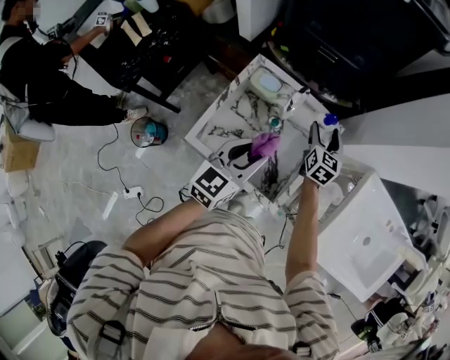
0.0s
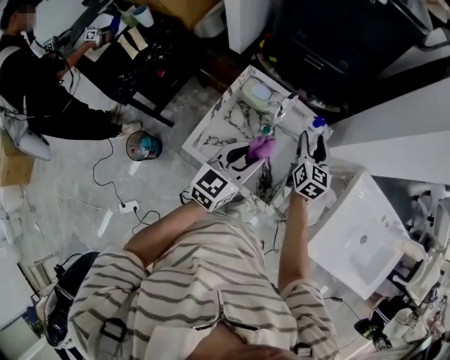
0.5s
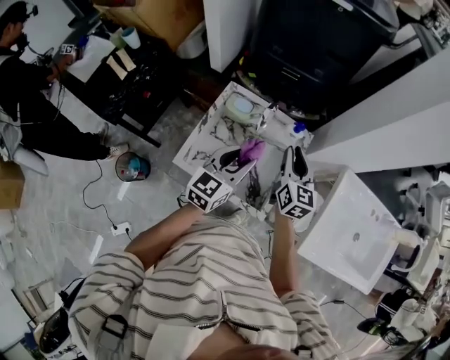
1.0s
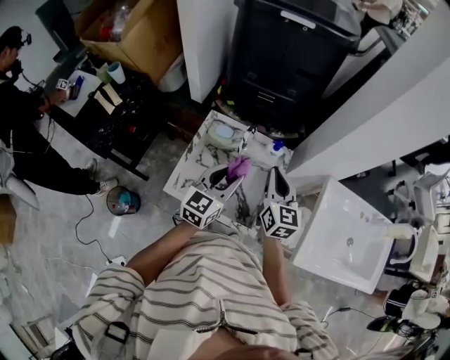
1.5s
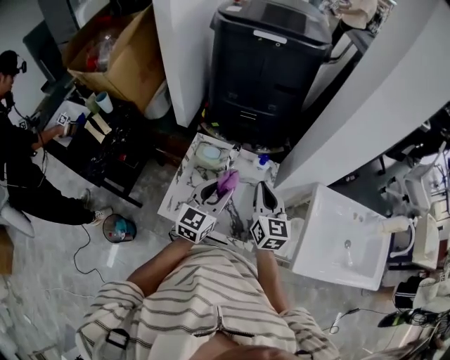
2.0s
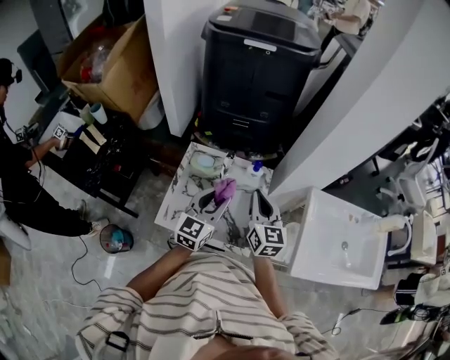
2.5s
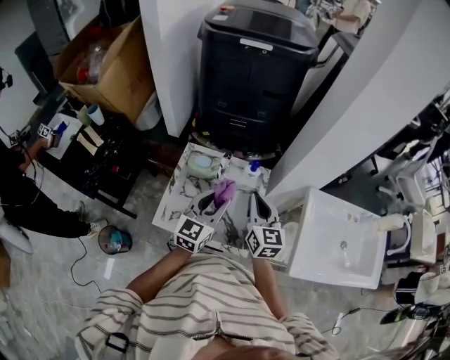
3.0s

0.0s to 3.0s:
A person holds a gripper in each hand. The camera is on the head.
0.0s to 1.5s: The right gripper moves upward and backward, about 25 cm, and closes. The left gripper goes about 5 cm upward.
1.5s to 3.0s: The grippers stay close to where they were, moving slightly.

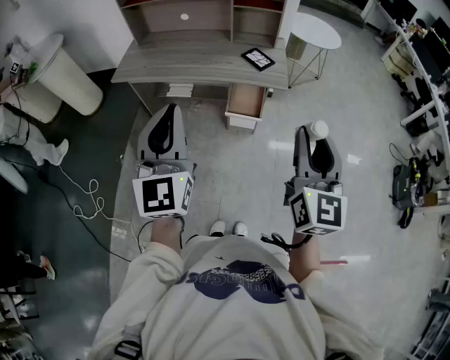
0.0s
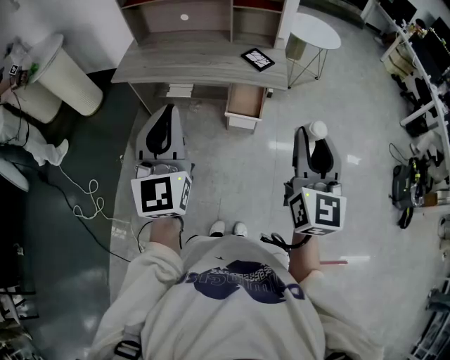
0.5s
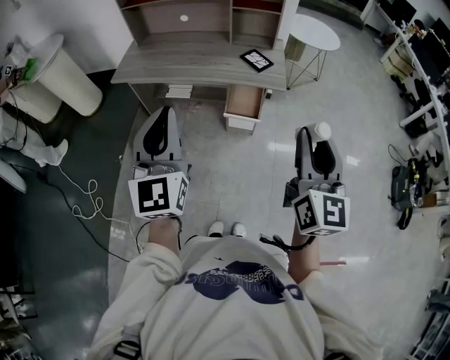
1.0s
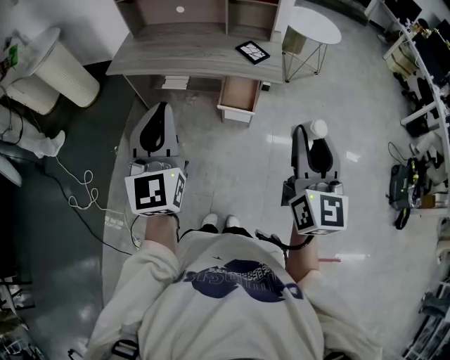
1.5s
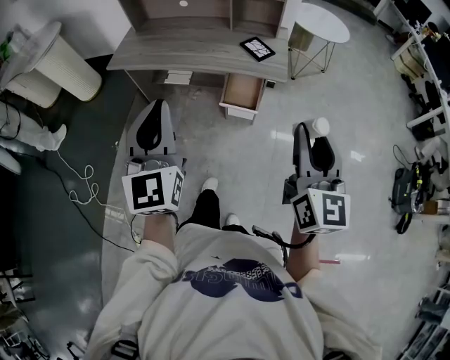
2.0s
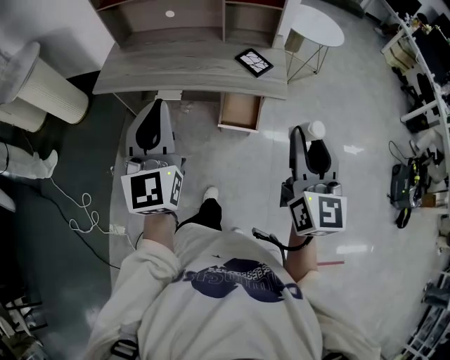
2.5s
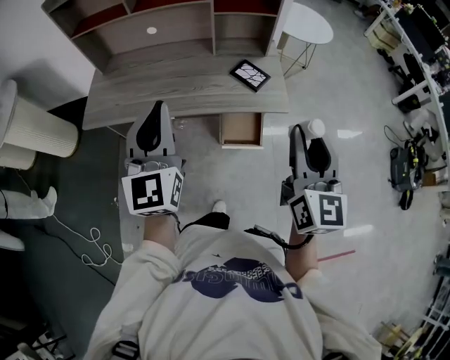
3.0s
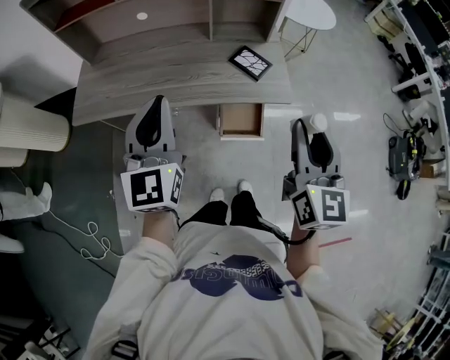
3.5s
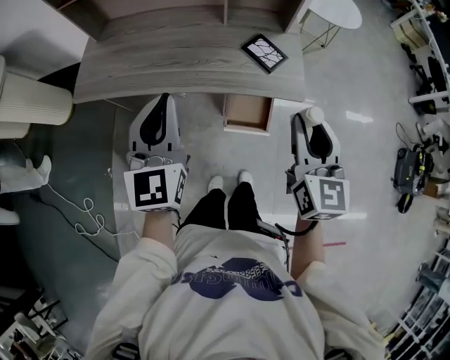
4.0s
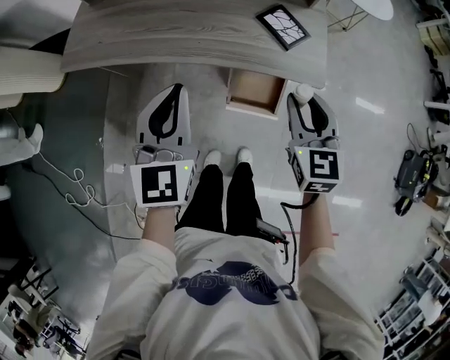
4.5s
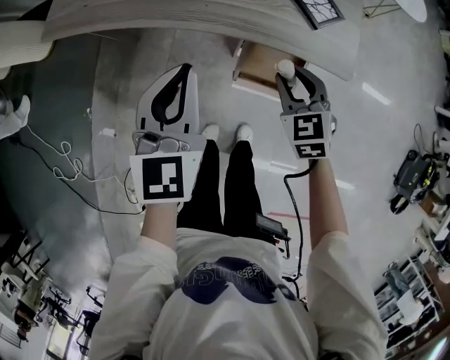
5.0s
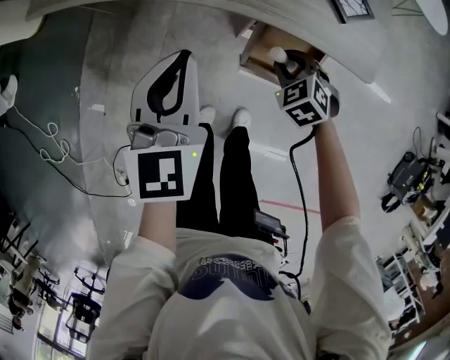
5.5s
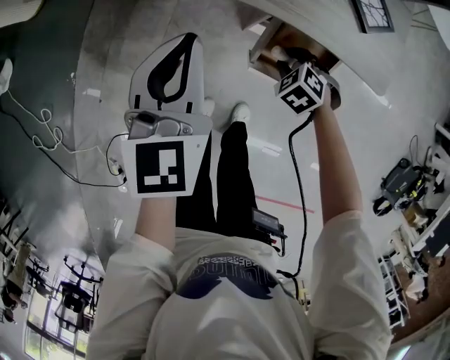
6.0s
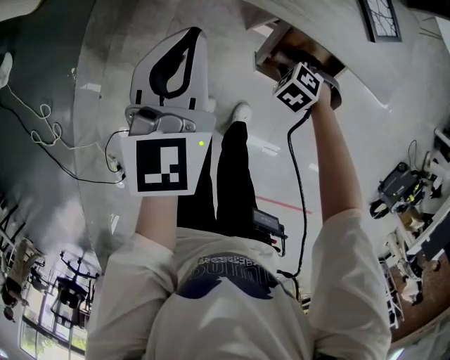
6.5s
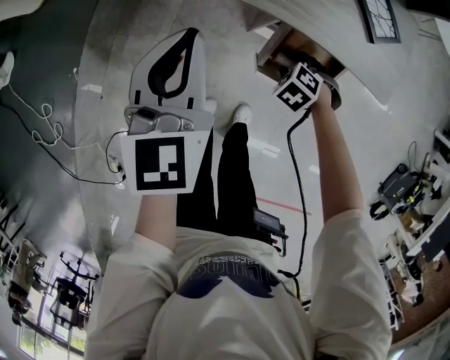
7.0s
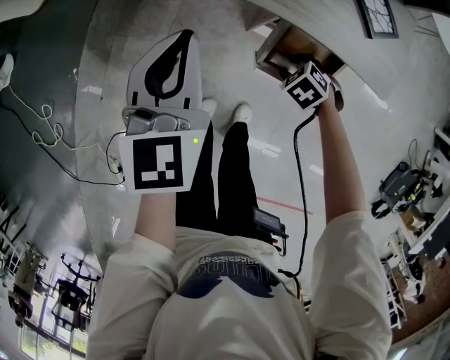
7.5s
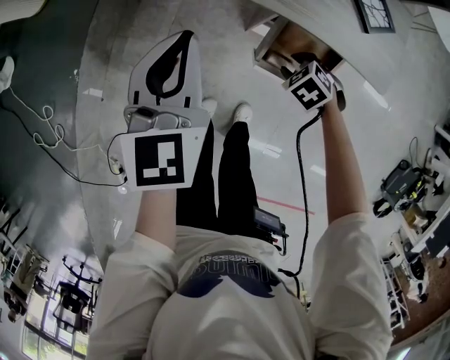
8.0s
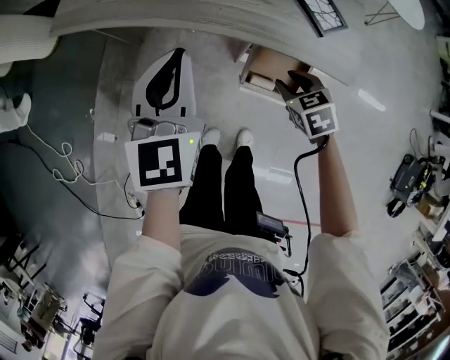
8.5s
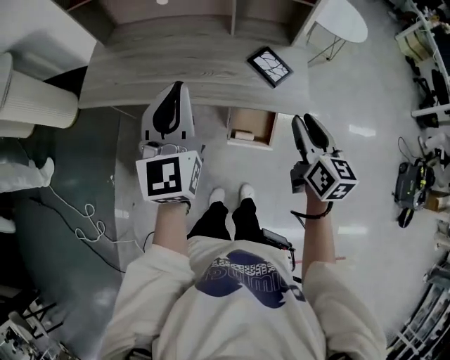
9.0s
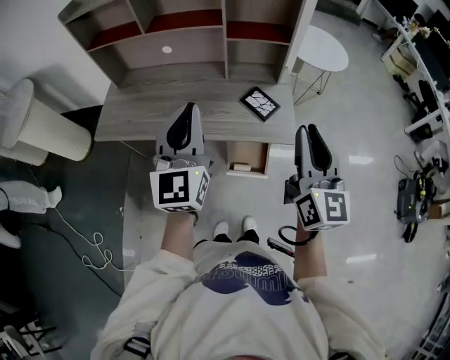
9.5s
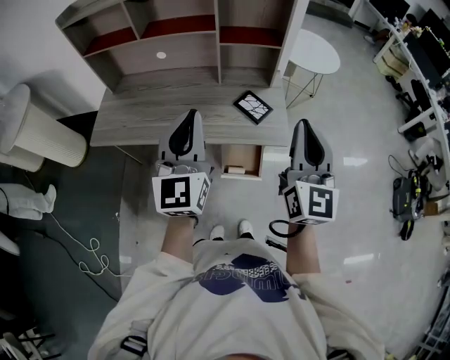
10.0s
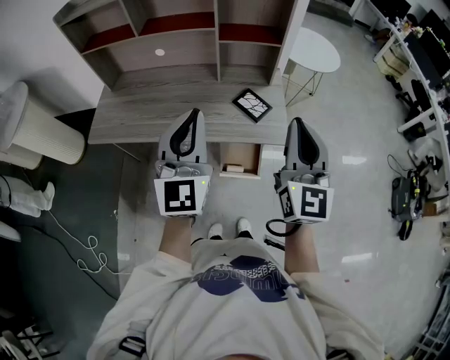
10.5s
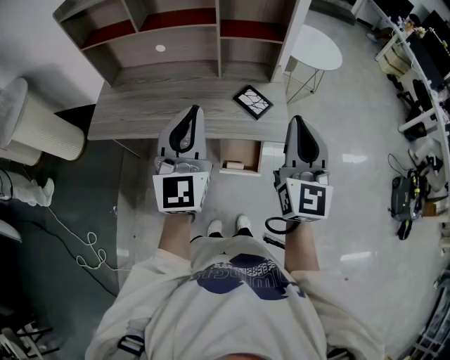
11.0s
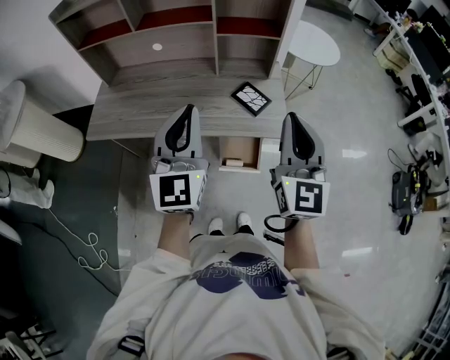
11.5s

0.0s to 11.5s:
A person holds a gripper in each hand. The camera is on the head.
0.0s to 2.0s: The right gripper shifts by some 5 cm.
2.0s to 4.0s: Both grippers travel together forward, approximately 30 cm.
4.0s to 6.0s: The left gripper heads downward, covering some 25 cm. The right gripper moves downward, roughly 50 cm, and tilts its fingers about 60 degrees downward.
6.0s to 7.5s: The grippers move only a little.
7.5s to 9.5s: The left gripper is displaced upward by some 35 cm, and swivels approximately 30 degrees, while the right gripper heads upward, covering approximately 60 cm, and angles its fingers upward, by some 90 degrees.
9.5s to 11.5s: There are only small adjustments of the grippers.

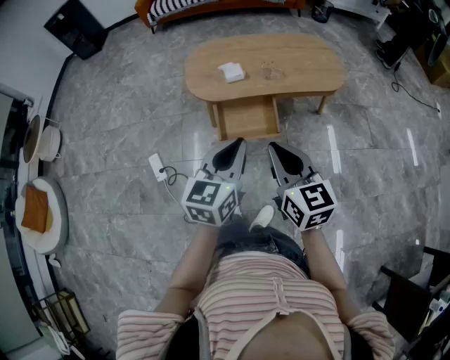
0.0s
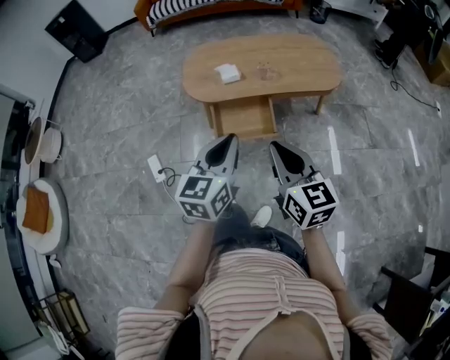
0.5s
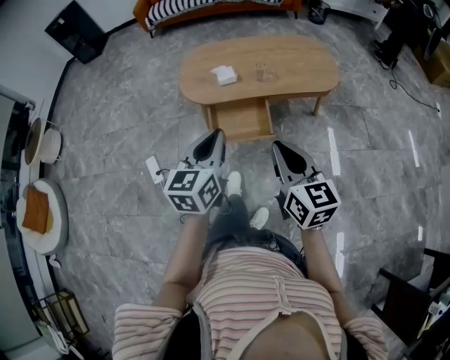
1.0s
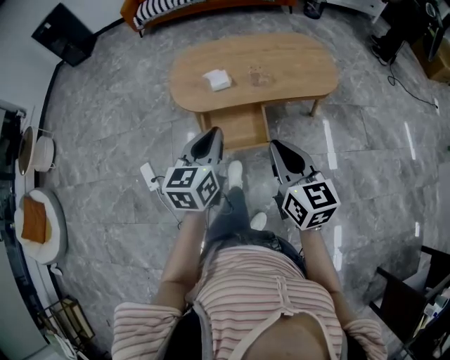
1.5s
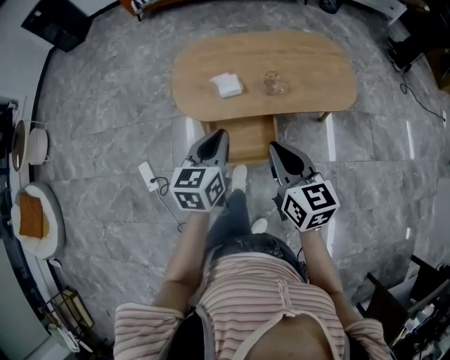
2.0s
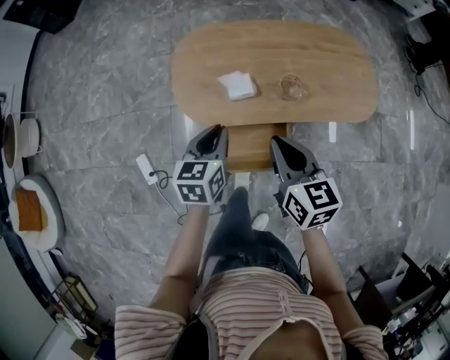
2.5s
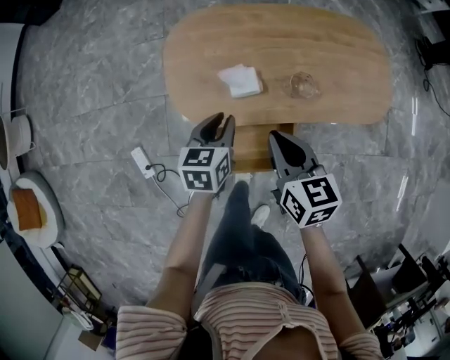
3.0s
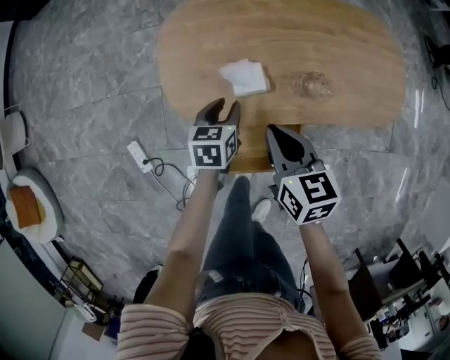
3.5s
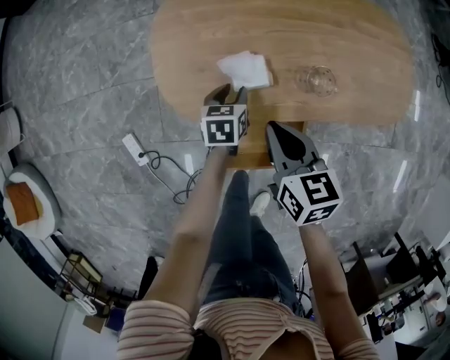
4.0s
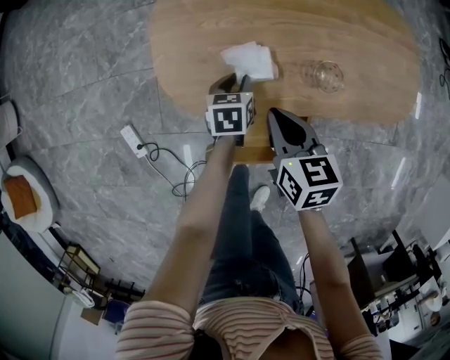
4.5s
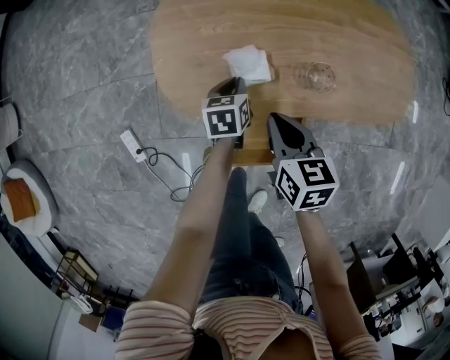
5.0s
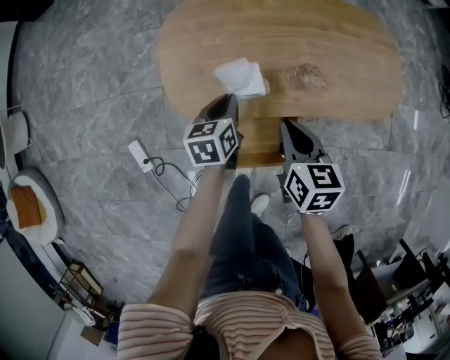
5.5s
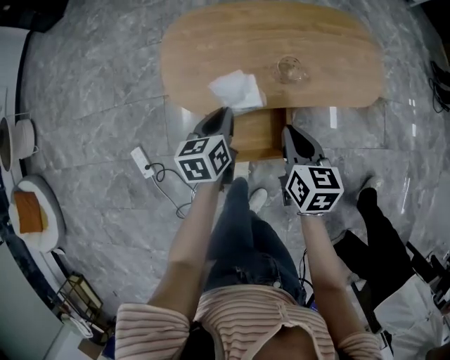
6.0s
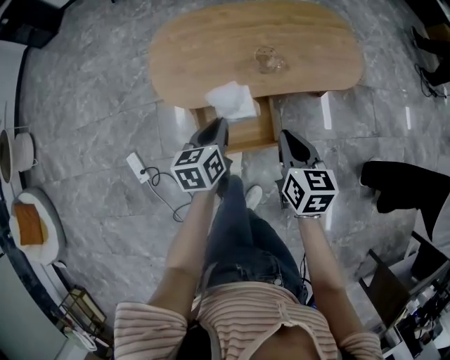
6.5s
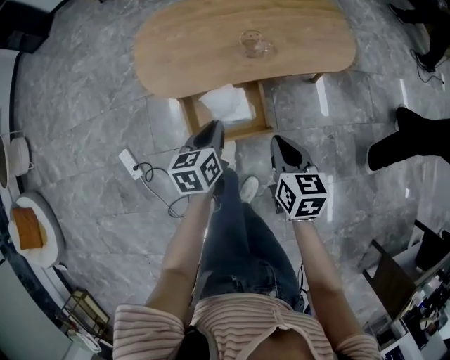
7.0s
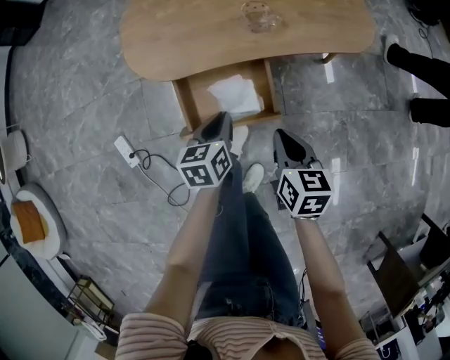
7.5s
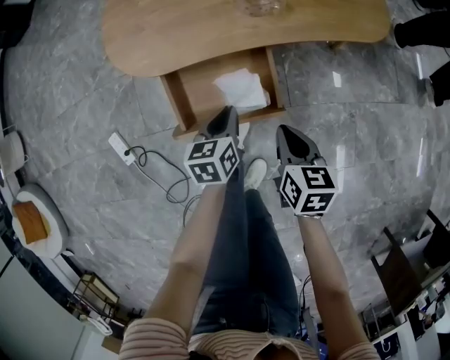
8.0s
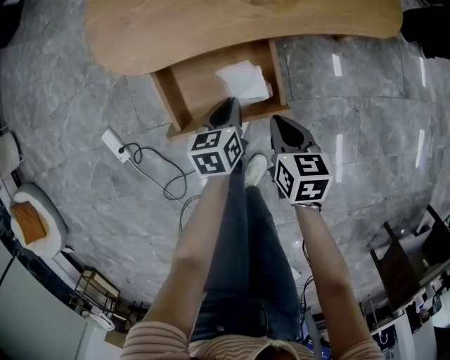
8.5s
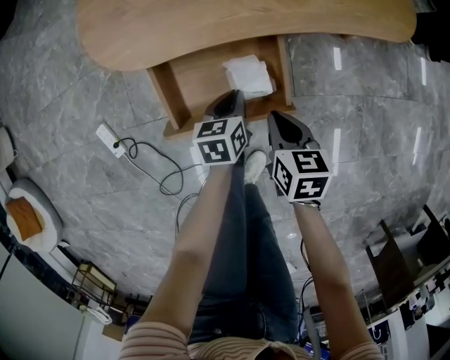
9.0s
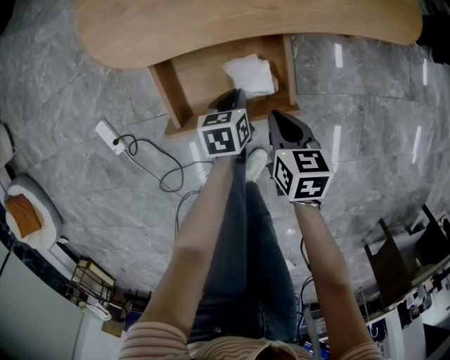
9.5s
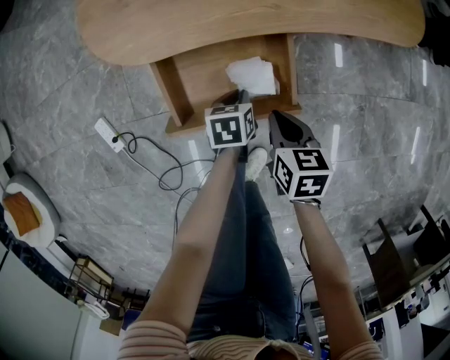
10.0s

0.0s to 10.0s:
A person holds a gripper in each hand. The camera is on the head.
0.0s to 2.0s: The grippers both shift forward by some 25 cm.
2.0s to 4.0s: The left gripper goes about 40 cm downward and forward, turns by roughly 30 degrees, and opens up, while the right gripper moves forward and downward, about 35 cm, and swivels some 20 degrees.
4.0s to 6.0s: The left gripper is displaced upward and backward by some 20 cm, and closes its fingers. The right gripper heads backward, to the right and upward, covering roughly 15 cm.
6.0s to 8.0s: The two grippers go approximately 25 cm downward, backward and to the right.
8.0s to 10.0s: Both grippers move downward, about 10 cm. The left gripper swivels some 20 degrees.

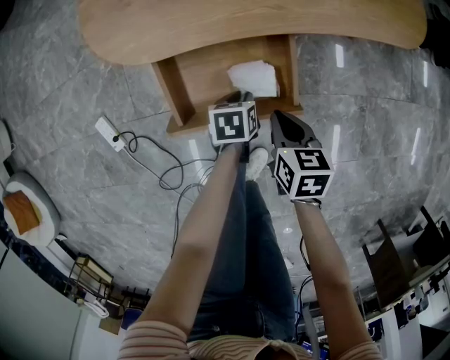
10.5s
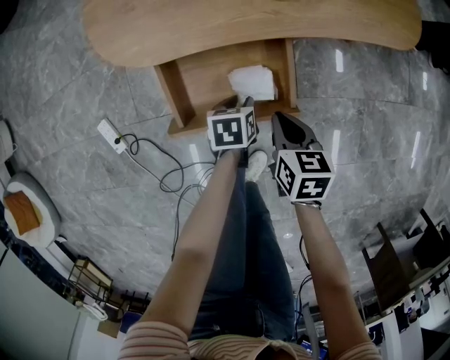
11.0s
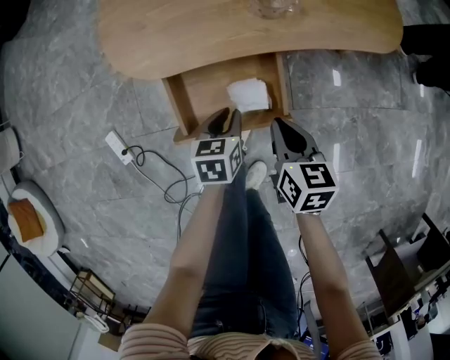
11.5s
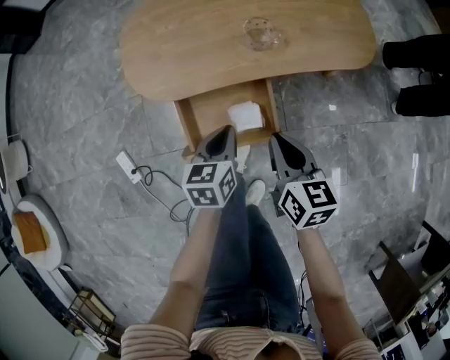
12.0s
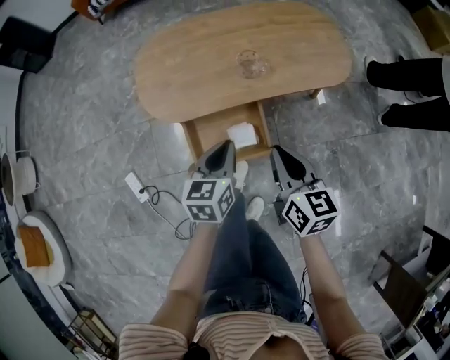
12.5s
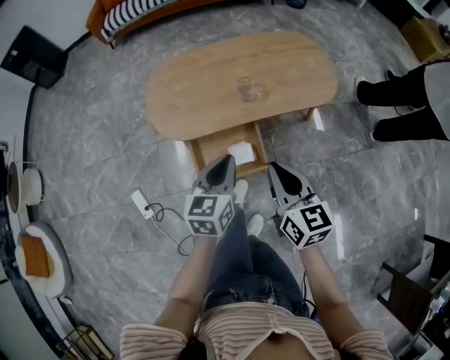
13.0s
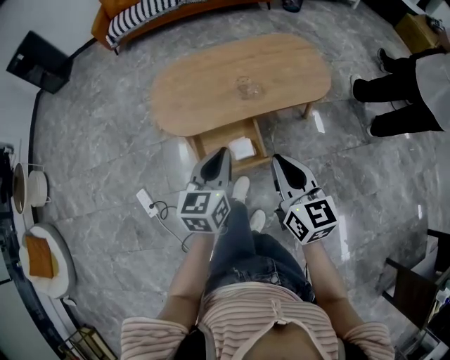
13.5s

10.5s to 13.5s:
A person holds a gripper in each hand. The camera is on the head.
10.5s to 12.0s: The grippers both shift upward by approximately 25 cm. The left gripper rotates approximately 30 degrees. The right gripper turns by roughly 20 degrees.
12.0s to 13.5s: The right gripper shifts approximately 25 cm upward and backward, and swivels roughly 20 degrees. Meanwhile the left gripper moves upward, some 25 cm, and rotates some 20 degrees.
